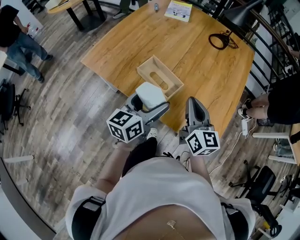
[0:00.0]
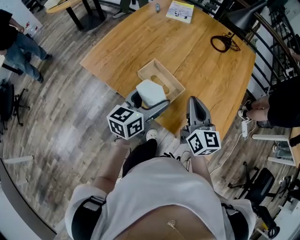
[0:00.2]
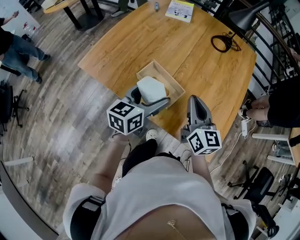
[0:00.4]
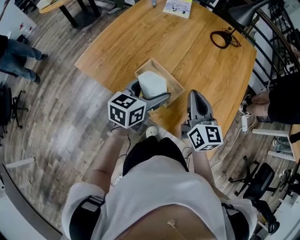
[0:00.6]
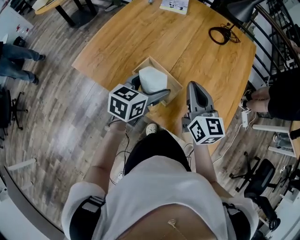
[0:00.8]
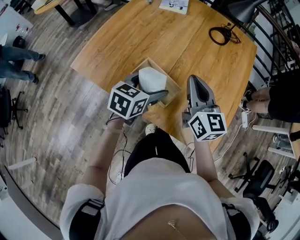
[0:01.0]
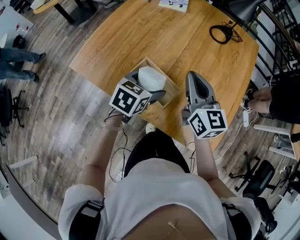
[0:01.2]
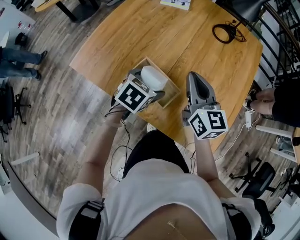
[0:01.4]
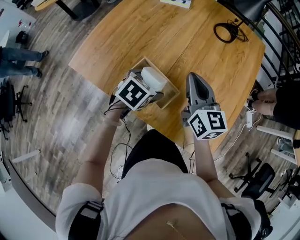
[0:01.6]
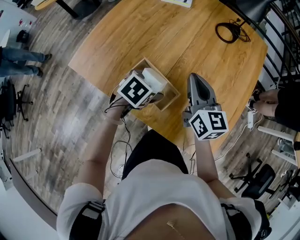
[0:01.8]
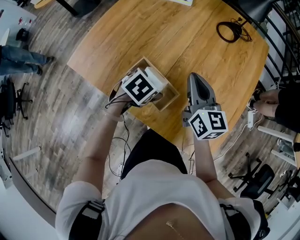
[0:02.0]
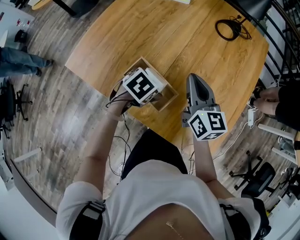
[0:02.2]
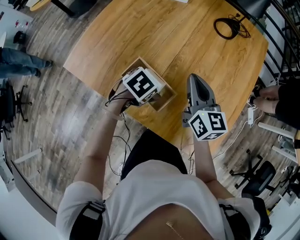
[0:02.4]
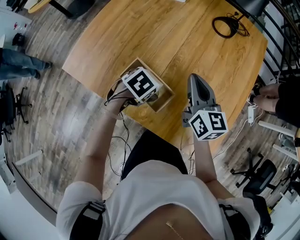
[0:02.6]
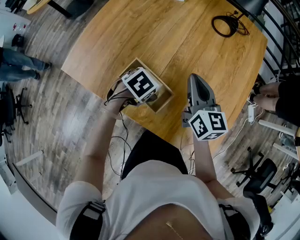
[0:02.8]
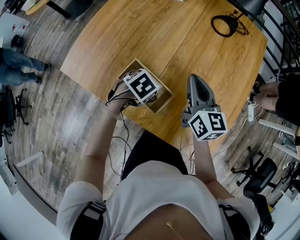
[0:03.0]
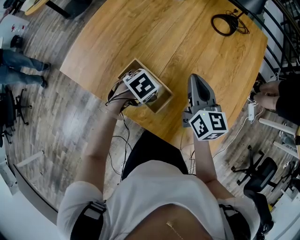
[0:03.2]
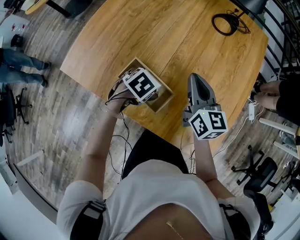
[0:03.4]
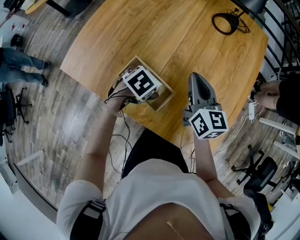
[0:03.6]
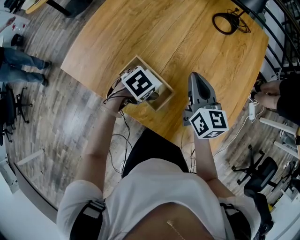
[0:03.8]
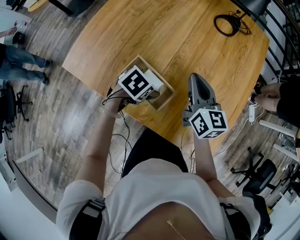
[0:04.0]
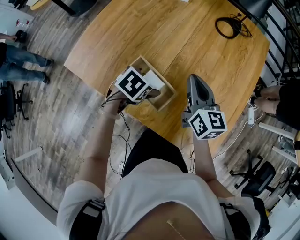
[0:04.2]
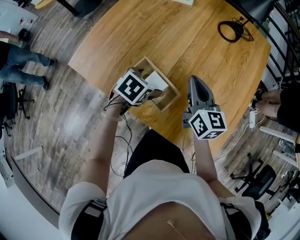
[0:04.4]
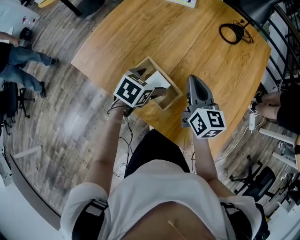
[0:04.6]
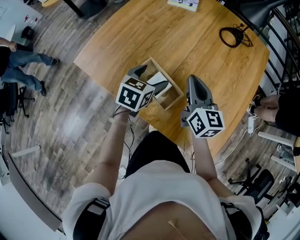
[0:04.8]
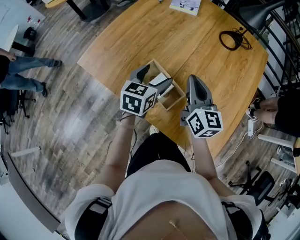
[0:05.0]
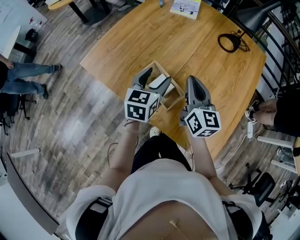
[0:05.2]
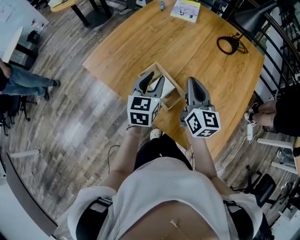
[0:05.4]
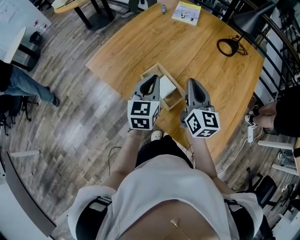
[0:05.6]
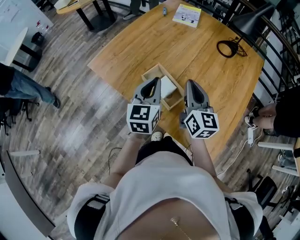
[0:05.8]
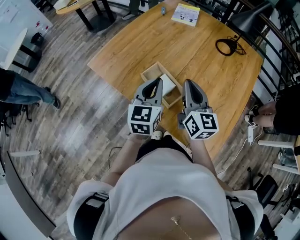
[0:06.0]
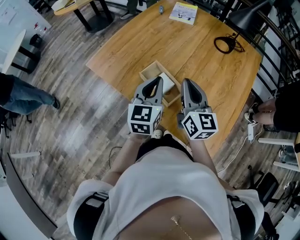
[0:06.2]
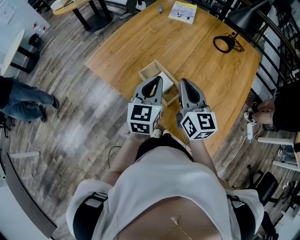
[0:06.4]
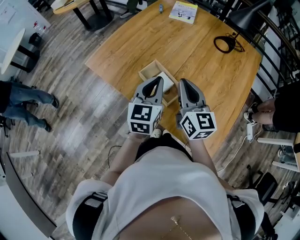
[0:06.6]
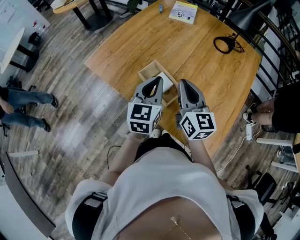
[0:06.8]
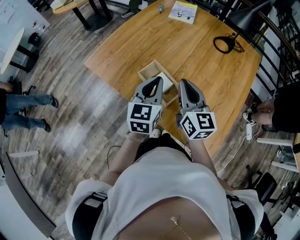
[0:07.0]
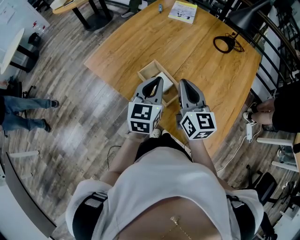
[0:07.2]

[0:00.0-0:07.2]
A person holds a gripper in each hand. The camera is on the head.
0:00.0 to 0:01.4: The right gripper moves forward, approximately 15 cm, while the left gripper is displaced forward and downward by approximately 15 cm, and tilts its fingers about 40 degrees downward.
0:01.4 to 0:02.8: The right gripper ends up roughly 5 cm from where it was, while the left gripper travels downward by roughly 10 cm, and swivels roughly 30 degrees.
0:02.8 to 0:04.4: The grippers make only small movements.
0:04.4 to 0:05.8: The left gripper heads upward, covering approximately 15 cm, points its fingers approximately 50 degrees further upward, and closes its fingers, while the right gripper goes some 10 cm upward and backward.
0:05.8 to 0:07.2: There are only small adjustments of the grippers.

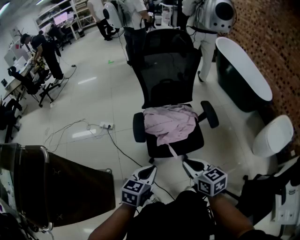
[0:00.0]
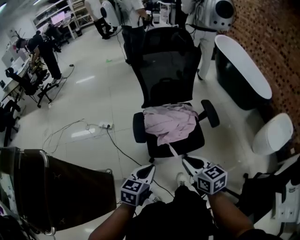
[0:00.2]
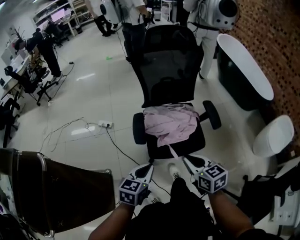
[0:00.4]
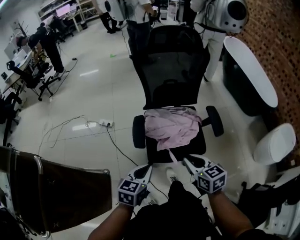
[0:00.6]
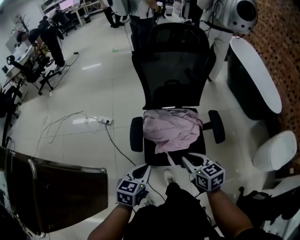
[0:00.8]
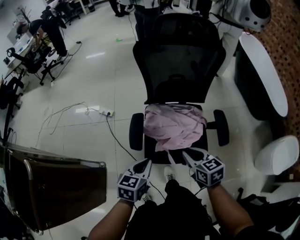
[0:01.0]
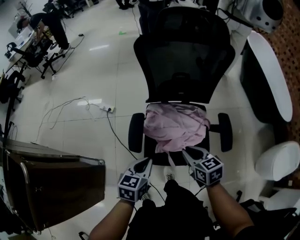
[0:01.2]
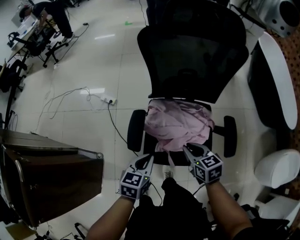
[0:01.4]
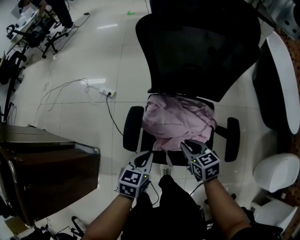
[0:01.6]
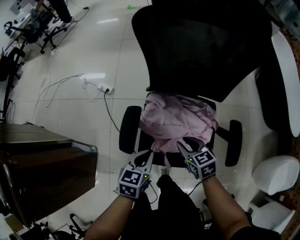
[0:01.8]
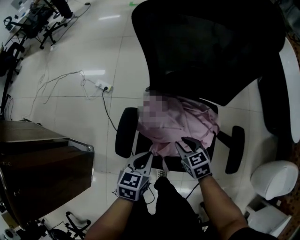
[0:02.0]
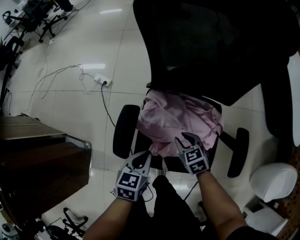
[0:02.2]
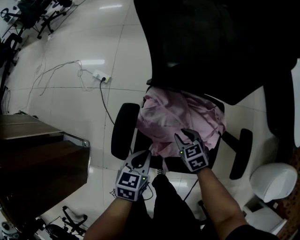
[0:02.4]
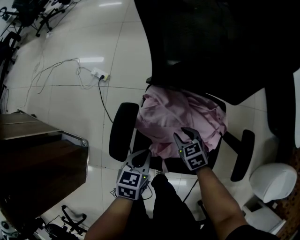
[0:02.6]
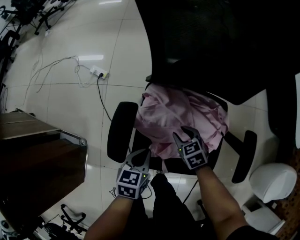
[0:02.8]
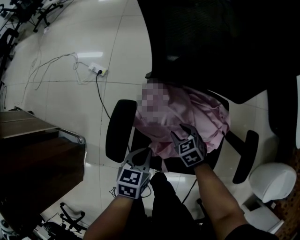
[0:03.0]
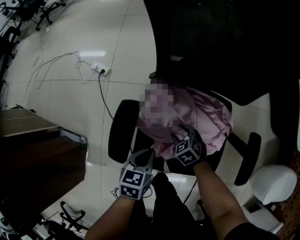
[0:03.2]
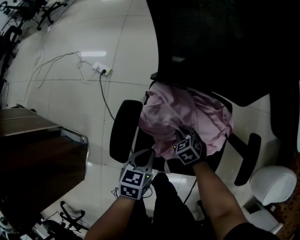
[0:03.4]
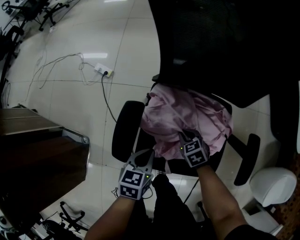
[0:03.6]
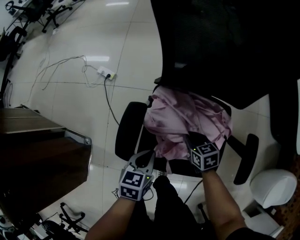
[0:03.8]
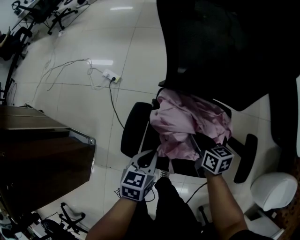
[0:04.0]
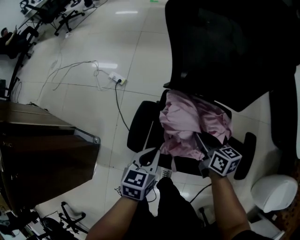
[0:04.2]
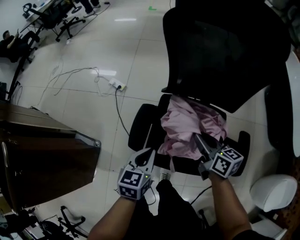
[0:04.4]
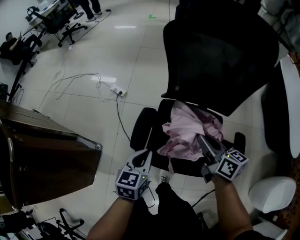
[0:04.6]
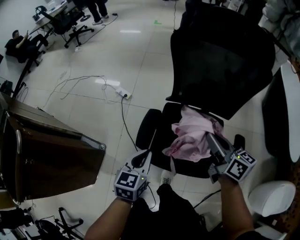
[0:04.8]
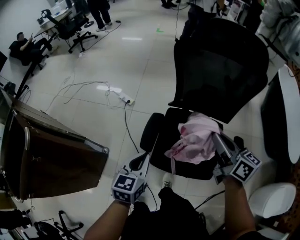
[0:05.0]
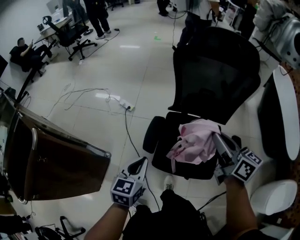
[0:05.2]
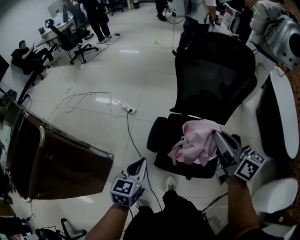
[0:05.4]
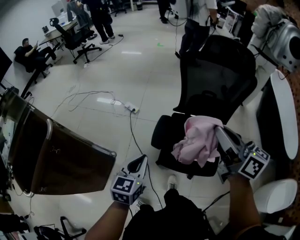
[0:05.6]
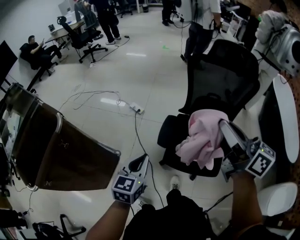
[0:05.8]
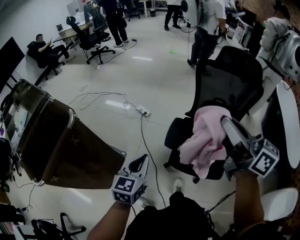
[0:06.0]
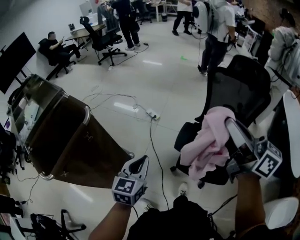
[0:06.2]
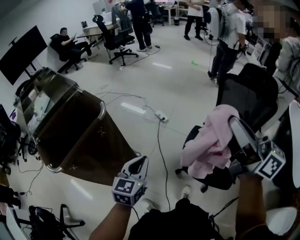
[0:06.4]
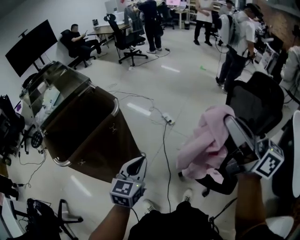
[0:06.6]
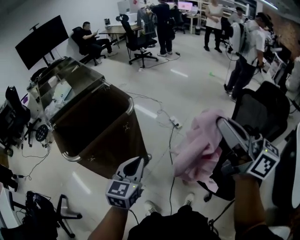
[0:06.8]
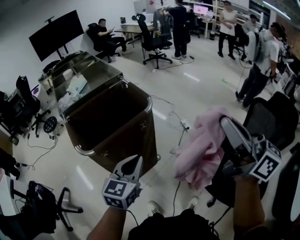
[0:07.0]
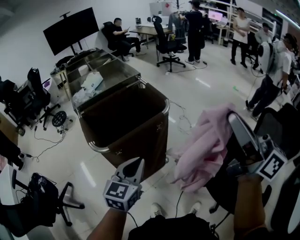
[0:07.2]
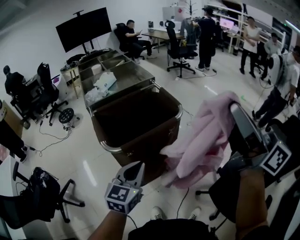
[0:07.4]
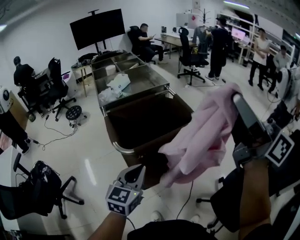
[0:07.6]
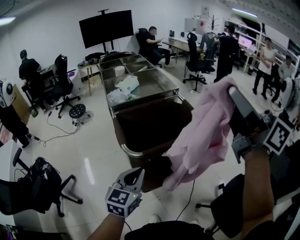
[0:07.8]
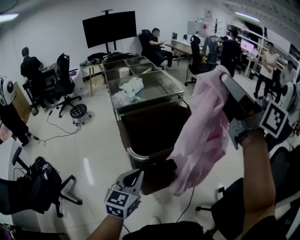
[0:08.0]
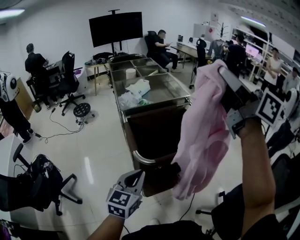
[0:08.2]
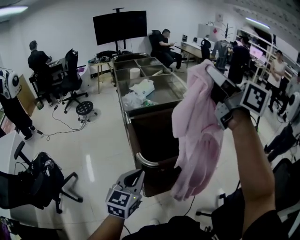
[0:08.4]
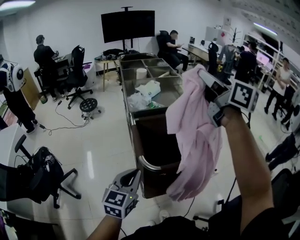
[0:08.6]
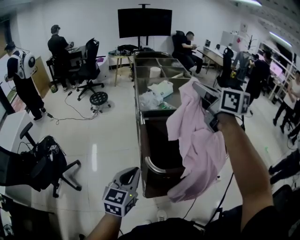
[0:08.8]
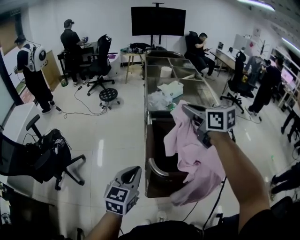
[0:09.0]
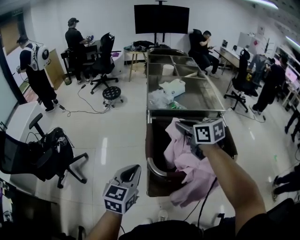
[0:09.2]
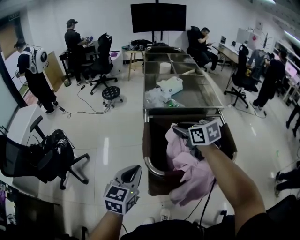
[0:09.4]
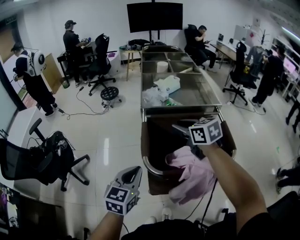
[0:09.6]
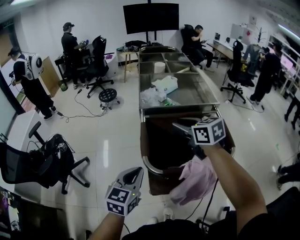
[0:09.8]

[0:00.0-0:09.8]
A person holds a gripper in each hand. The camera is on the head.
0:00.0 to 0:01.4: Both grippers move forward and downward, some 30 cm.
0:01.4 to 0:02.8: The left gripper travels downward by approximately 20 cm. The right gripper moves downward and forward, roughly 25 cm, rotates approximately 20 degrees, and opens up.
0:02.8 to 0:04.2: The right gripper shifts about 15 cm upward, turns by some 40 degrees, and closes up. Meanwhile the left gripper travels upward by about 10 cm.
0:04.2 to 0:05.6: The right gripper travels upward by approximately 40 cm, and swivels roughly 30 degrees; the left gripper goes approximately 30 cm upward, to the left and backward.
0:05.6 to 0:07.0: The right gripper ends up approximately 40 cm from where it was, and changes its angle by roughly 40 degrees. The left gripper moves about 35 cm, and changes its angle by approximately 30 degrees.
0:07.0 to 0:08.4: The right gripper moves forward, to the left and upward, some 40 cm. The left gripper is displaced to the left by some 25 cm.
0:08.4 to 0:09.8: The right gripper heads downward, covering roughly 30 cm, tips its fingers downward by approximately 40 degrees, and opens up. The left gripper moves some 5 cm.

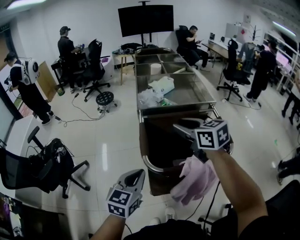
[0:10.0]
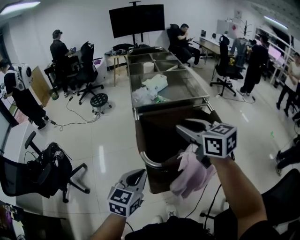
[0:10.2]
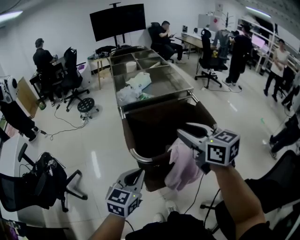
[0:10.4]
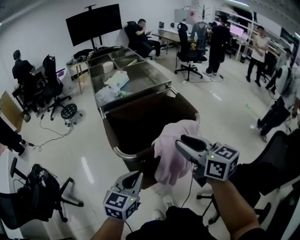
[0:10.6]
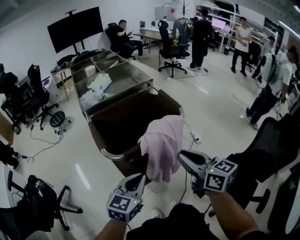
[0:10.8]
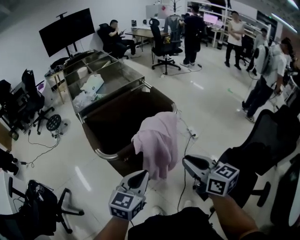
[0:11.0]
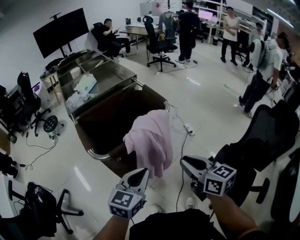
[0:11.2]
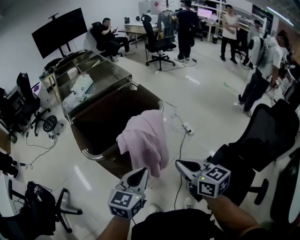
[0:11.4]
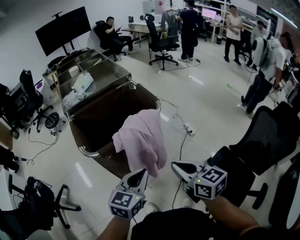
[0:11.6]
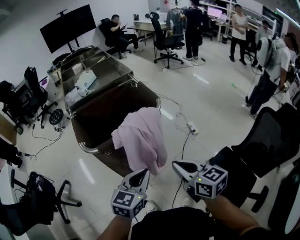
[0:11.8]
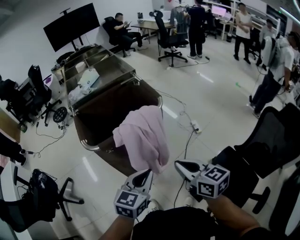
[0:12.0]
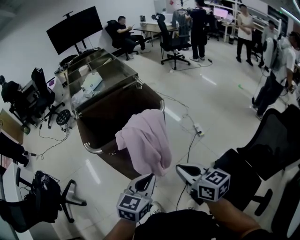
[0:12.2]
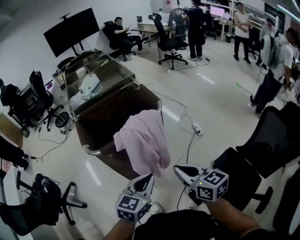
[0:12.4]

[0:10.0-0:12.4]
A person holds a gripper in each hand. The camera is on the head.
0:10.0 to 0:11.2: The right gripper moves roughly 40 cm, changes its angle by approximately 40 degrees, and closes; the left gripper moves approximately 20 cm, and rotates about 30 degrees.
0:11.2 to 0:12.4: The left gripper travels to the right by approximately 5 cm.

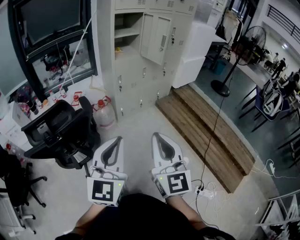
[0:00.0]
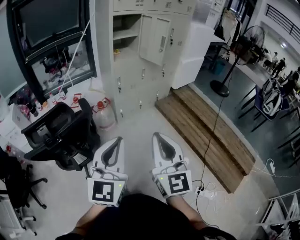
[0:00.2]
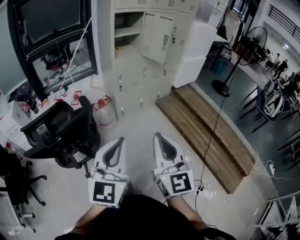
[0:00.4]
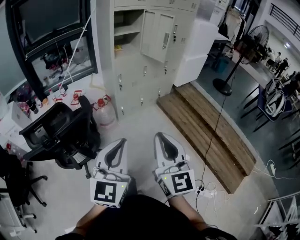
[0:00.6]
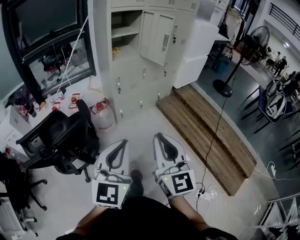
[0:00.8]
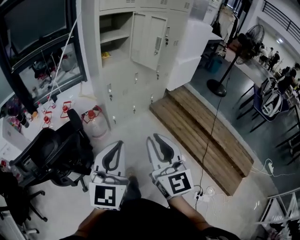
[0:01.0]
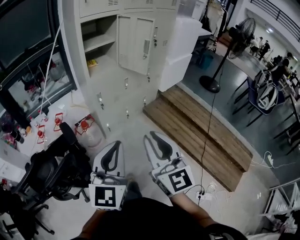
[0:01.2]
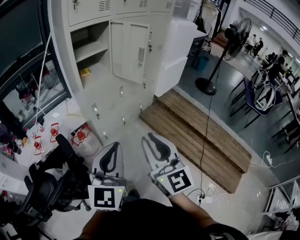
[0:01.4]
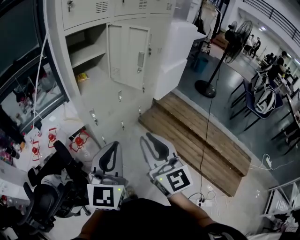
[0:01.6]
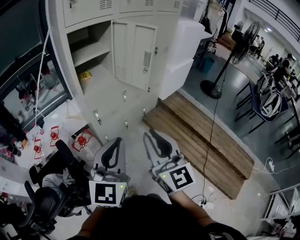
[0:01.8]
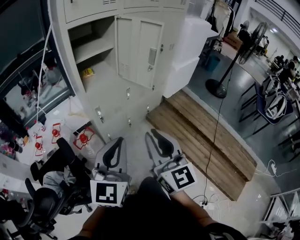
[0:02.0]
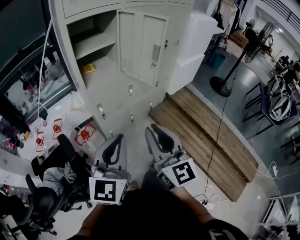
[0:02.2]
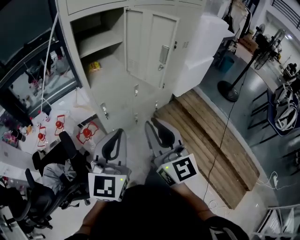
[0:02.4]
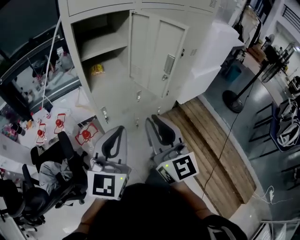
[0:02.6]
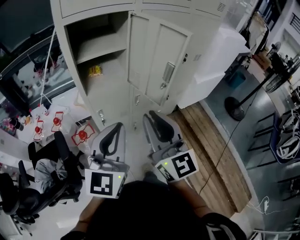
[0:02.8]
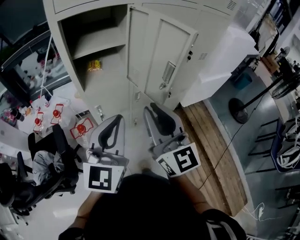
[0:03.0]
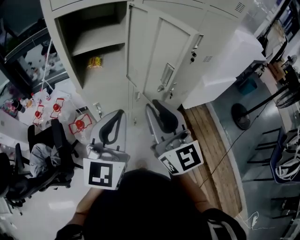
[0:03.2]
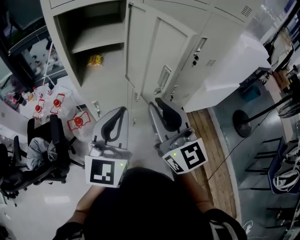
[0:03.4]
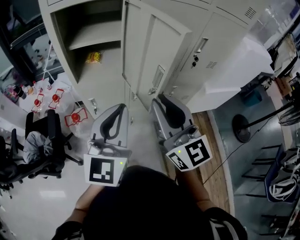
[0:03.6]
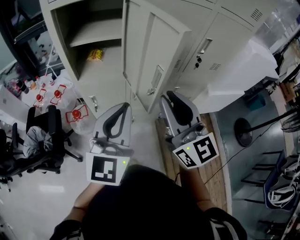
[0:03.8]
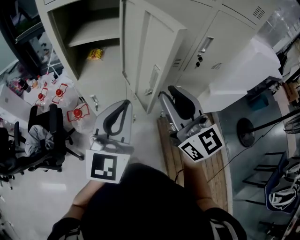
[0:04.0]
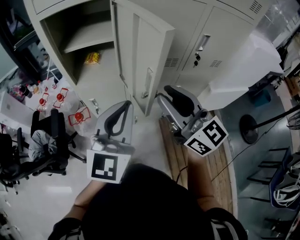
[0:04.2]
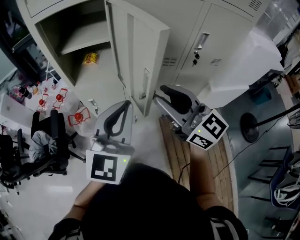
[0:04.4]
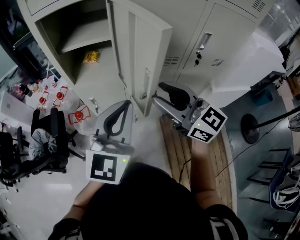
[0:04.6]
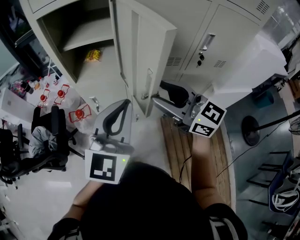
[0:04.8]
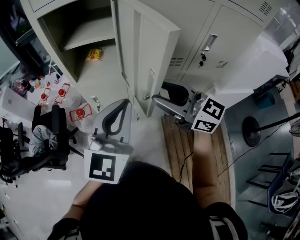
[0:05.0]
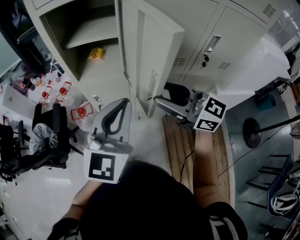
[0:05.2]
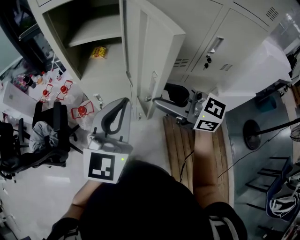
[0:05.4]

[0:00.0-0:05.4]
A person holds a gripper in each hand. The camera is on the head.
0:00.0 to 0:01.4: Both grippers travel together forward, some 30 cm.
0:01.4 to 0:02.8: The two grippers go roughly 30 cm forward.
0:02.8 to 0:04.0: Both grippers travel together to the right and forward, some 20 cm. The right gripper rotates approximately 20 degrees.
0:04.0 to 0:05.4: The right gripper changes place by roughly 5 cm, rotates some 40 degrees, and opens up.
